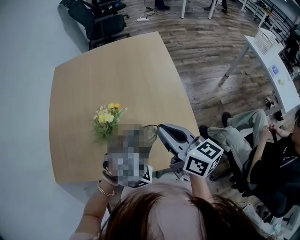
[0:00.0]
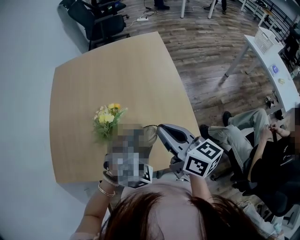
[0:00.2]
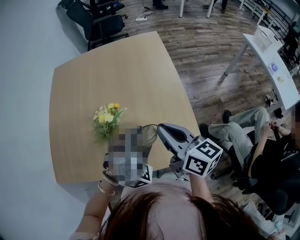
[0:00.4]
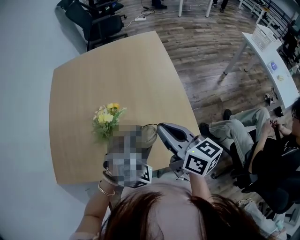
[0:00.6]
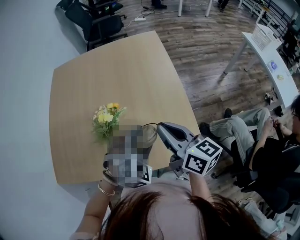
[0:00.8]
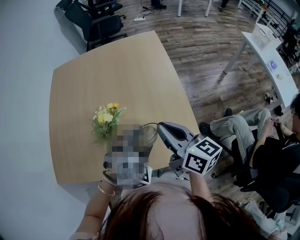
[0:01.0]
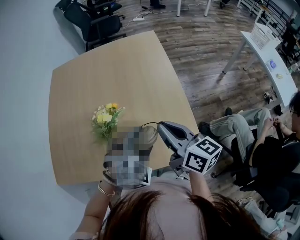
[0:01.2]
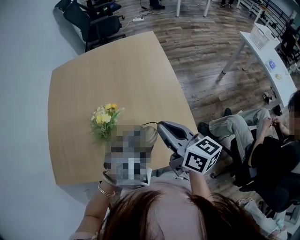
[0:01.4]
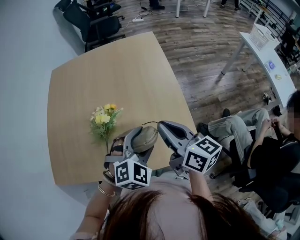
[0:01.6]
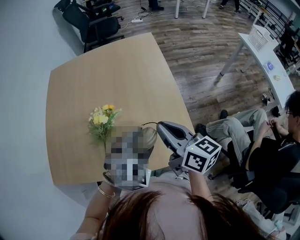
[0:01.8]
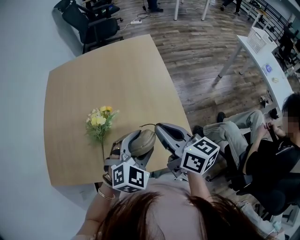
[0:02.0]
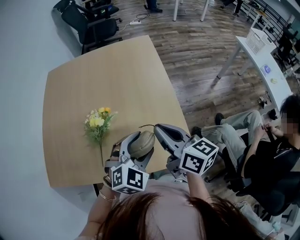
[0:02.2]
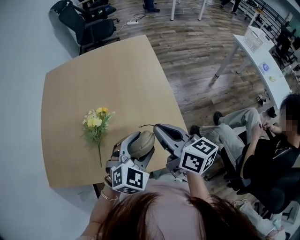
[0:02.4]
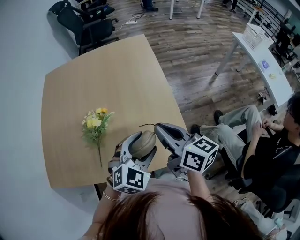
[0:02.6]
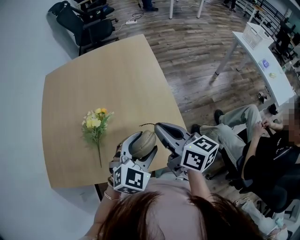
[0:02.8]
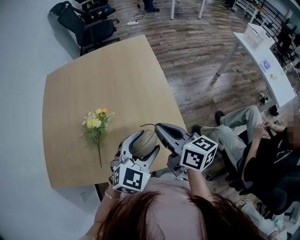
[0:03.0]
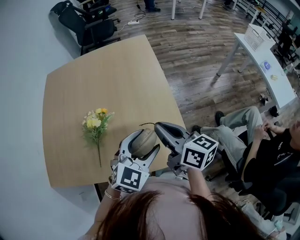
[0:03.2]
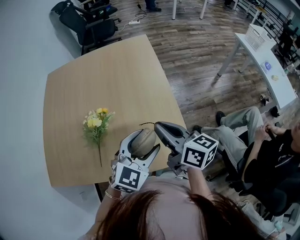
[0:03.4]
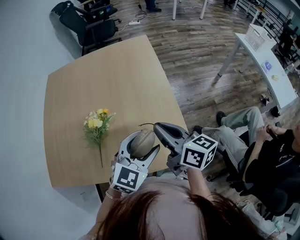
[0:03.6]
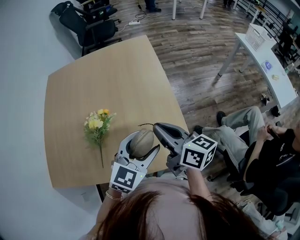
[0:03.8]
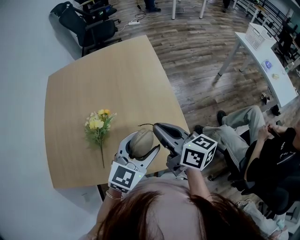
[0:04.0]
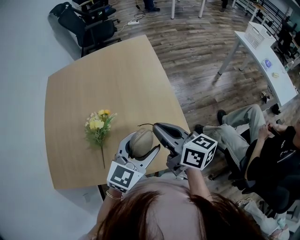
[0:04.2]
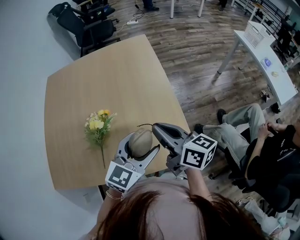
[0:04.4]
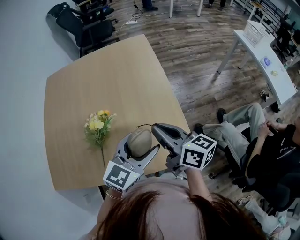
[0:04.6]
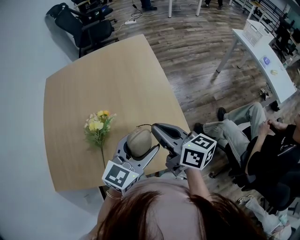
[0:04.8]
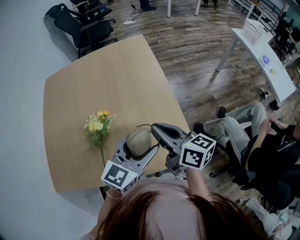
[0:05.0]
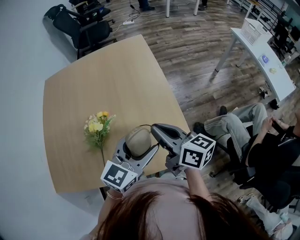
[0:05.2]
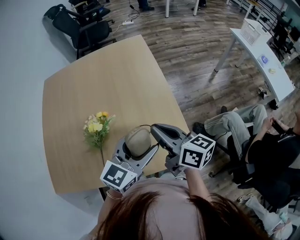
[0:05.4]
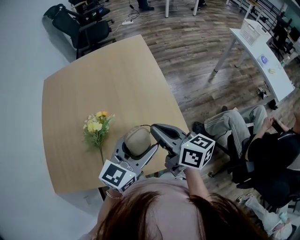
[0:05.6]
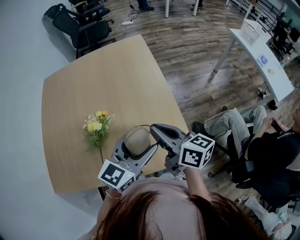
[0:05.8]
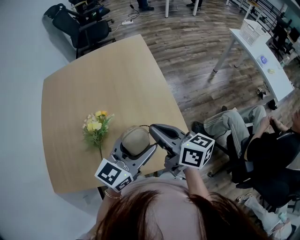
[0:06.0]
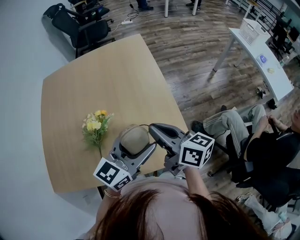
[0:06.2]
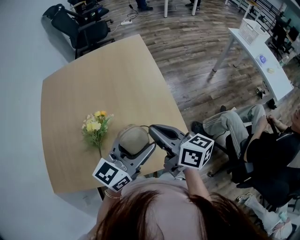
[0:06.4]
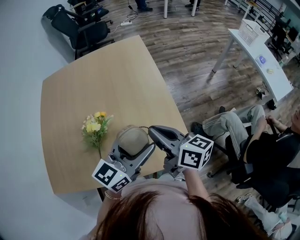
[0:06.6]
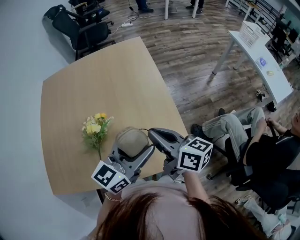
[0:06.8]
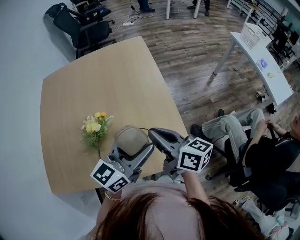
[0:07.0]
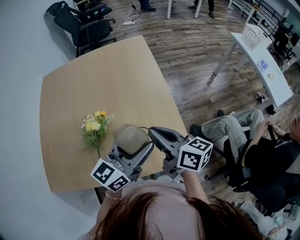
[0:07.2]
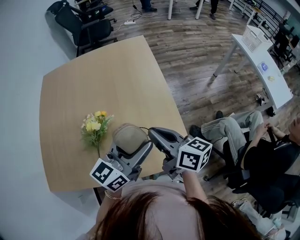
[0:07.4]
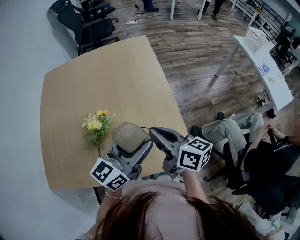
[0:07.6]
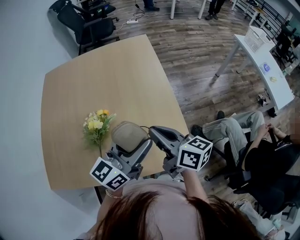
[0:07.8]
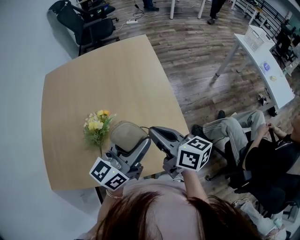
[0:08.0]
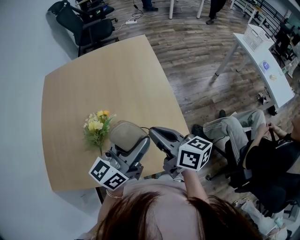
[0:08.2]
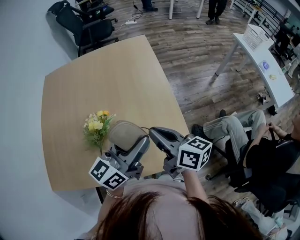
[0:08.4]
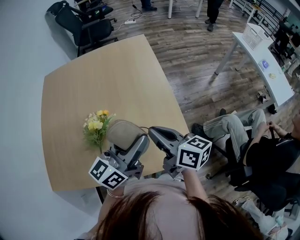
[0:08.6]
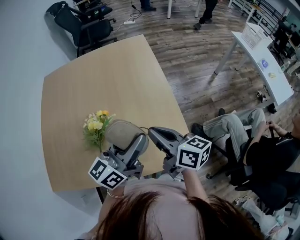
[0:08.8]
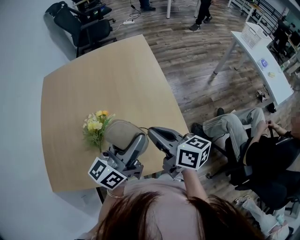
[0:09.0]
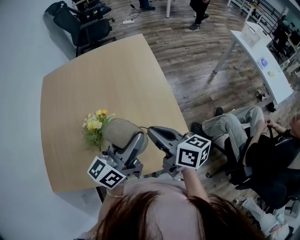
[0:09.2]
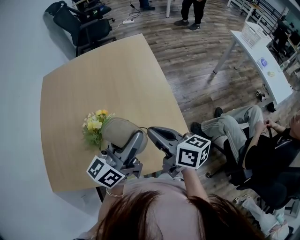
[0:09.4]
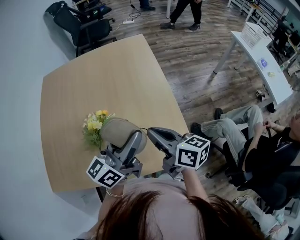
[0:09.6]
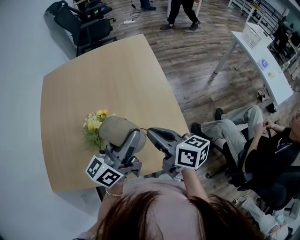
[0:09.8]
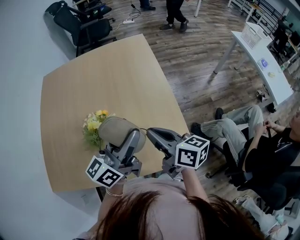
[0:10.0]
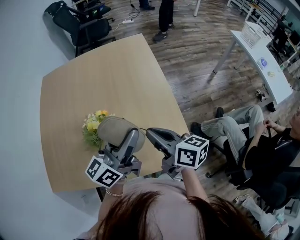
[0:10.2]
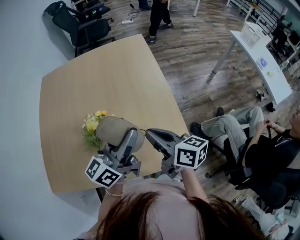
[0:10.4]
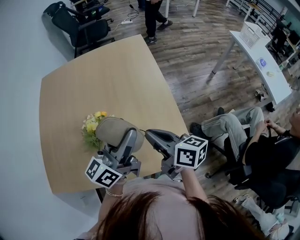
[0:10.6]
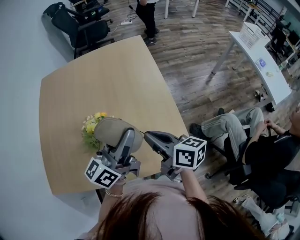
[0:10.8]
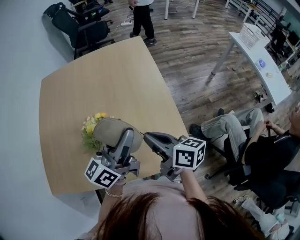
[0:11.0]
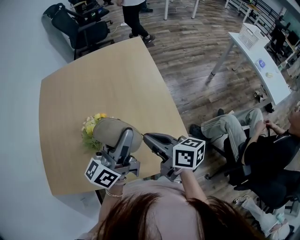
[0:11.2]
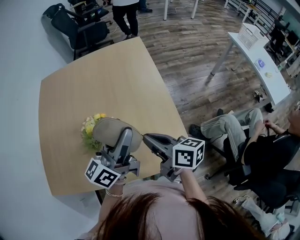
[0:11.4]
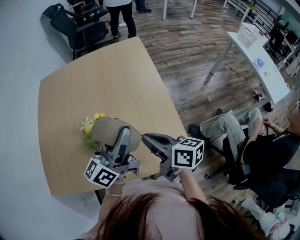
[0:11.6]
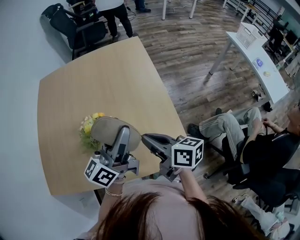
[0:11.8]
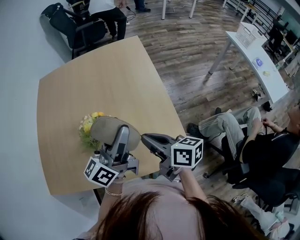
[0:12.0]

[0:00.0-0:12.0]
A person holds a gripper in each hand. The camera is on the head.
0:00.0 to 0:01.6: There are only small adjustments of the grippers.
0:01.6 to 0:03.0: The left gripper travels to the right by about 5 cm, and swivels roughly 20 degrees.
0:03.0 to 0:04.4: The left gripper turns by about 20 degrees.
0:04.4 to 0:06.0: The grippers move only a little.
0:06.0 to 0:07.6: The grippers move only a little.
0:07.6 to 0:10.4: The grippers move only a little.
0:10.4 to 0:12.0: The grippers make only small movements.

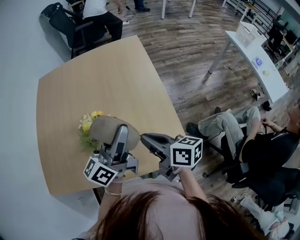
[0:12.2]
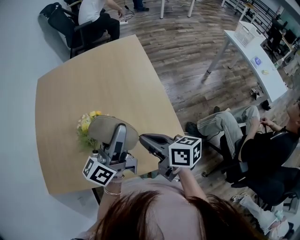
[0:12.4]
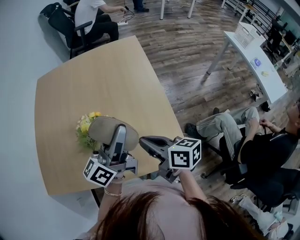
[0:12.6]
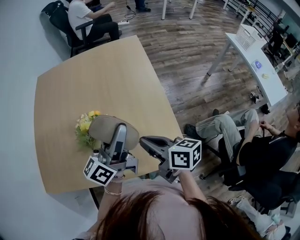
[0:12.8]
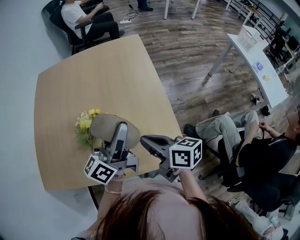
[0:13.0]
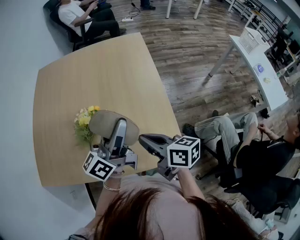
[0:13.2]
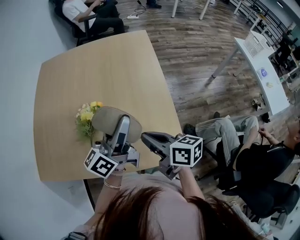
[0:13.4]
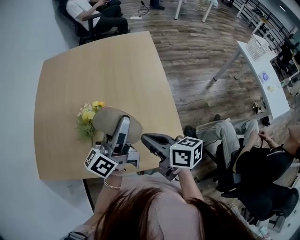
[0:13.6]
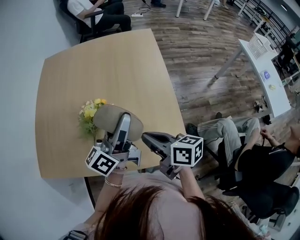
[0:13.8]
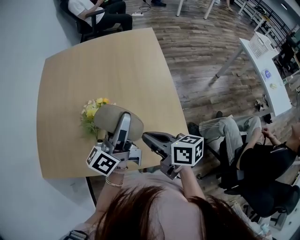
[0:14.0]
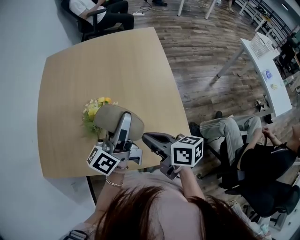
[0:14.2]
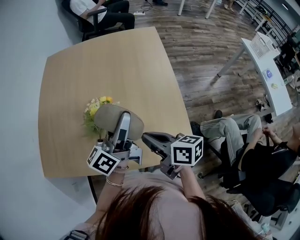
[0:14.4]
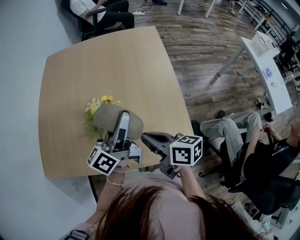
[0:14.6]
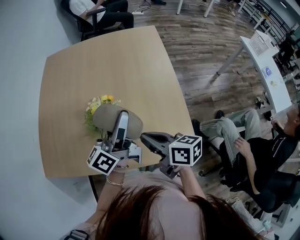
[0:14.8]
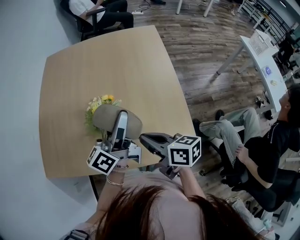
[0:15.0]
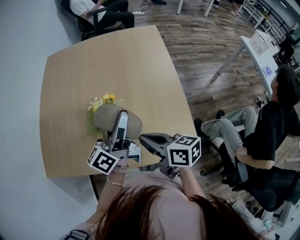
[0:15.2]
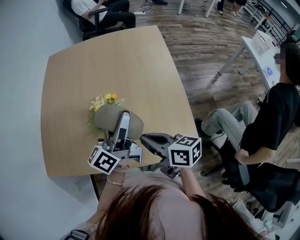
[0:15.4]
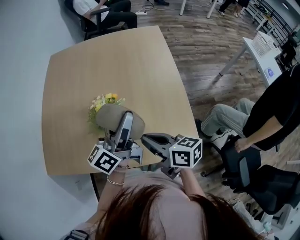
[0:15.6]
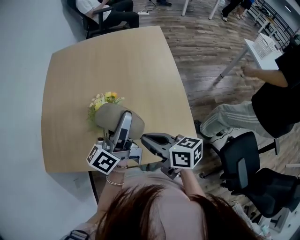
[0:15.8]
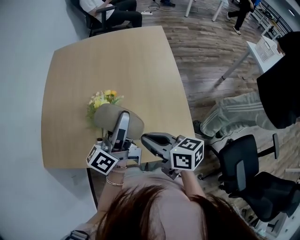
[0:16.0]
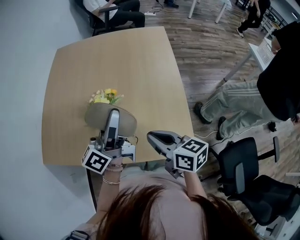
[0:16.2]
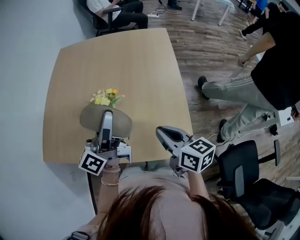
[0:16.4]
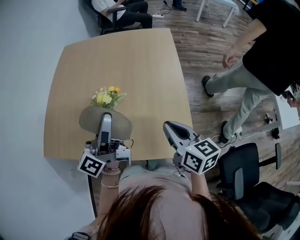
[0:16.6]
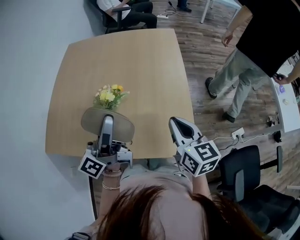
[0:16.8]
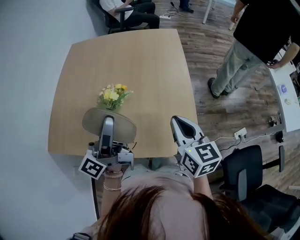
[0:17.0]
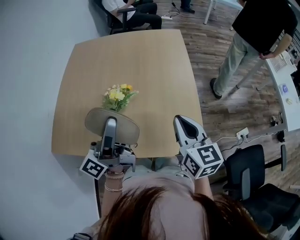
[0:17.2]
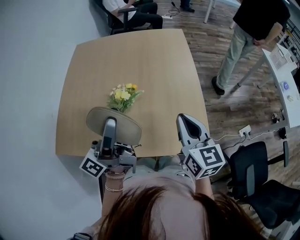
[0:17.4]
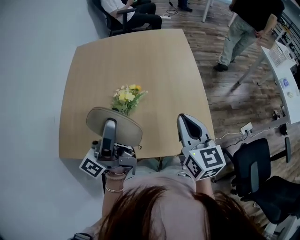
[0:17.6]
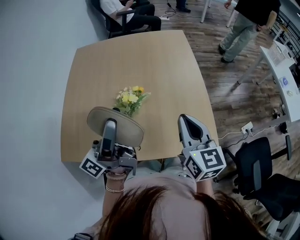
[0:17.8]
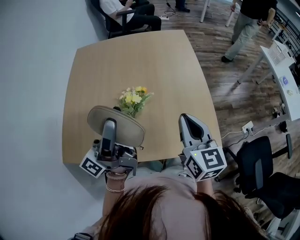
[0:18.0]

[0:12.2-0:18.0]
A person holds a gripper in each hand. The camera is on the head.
0:12.2 to 0:13.6: The grippers move only a little.
0:13.6 to 0:15.0: Both grippers travel together to the left, roughly 5 cm.
0:15.0 to 0:16.6: The left gripper moves backward, about 5 cm. The right gripper travels to the right by about 10 cm, and rotates about 20 degrees.
0:16.6 to 0:18.0: The grippers both shift to the left by approximately 10 cm. The right gripper changes its angle by about 20 degrees, while the left gripper changes its angle by roughly 20 degrees.

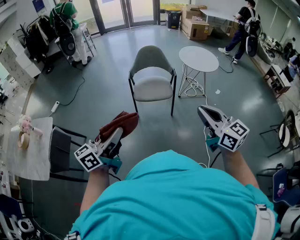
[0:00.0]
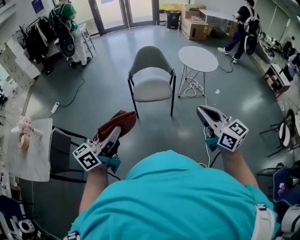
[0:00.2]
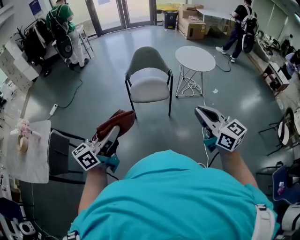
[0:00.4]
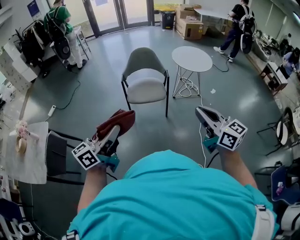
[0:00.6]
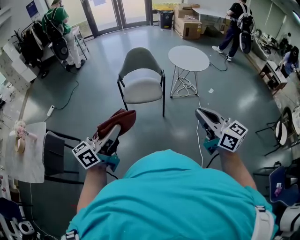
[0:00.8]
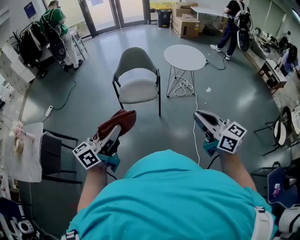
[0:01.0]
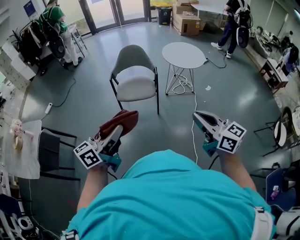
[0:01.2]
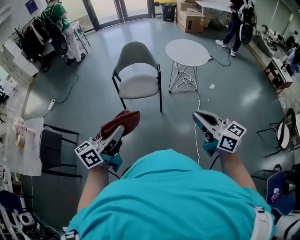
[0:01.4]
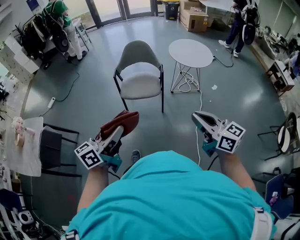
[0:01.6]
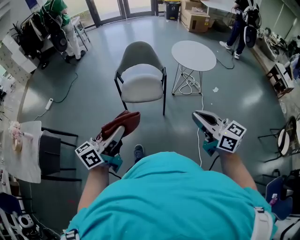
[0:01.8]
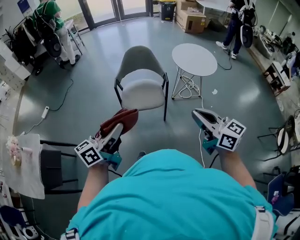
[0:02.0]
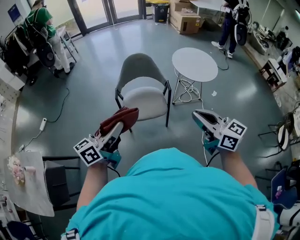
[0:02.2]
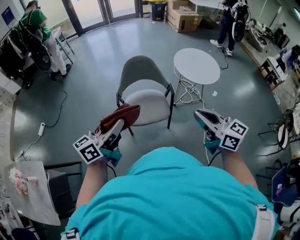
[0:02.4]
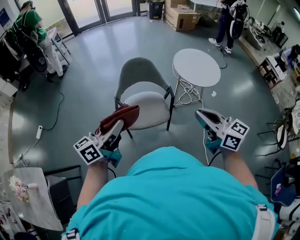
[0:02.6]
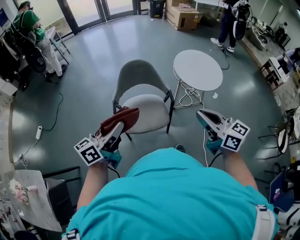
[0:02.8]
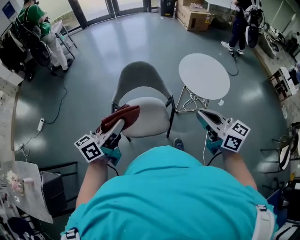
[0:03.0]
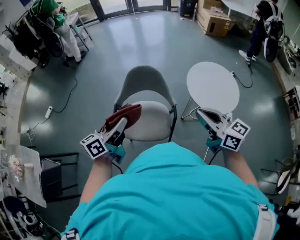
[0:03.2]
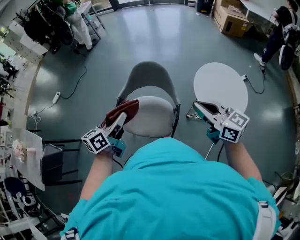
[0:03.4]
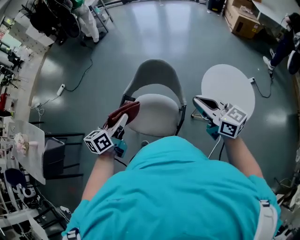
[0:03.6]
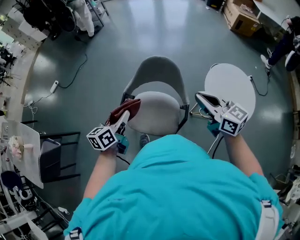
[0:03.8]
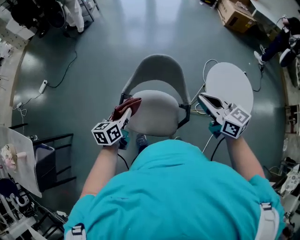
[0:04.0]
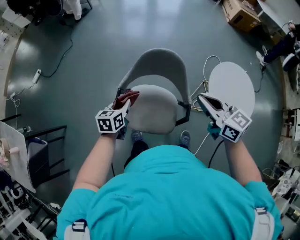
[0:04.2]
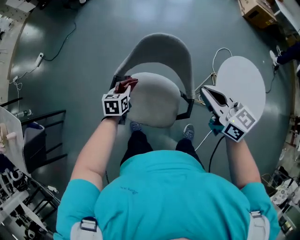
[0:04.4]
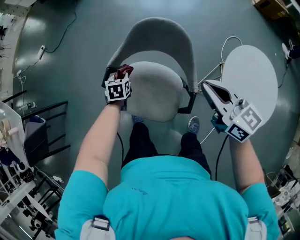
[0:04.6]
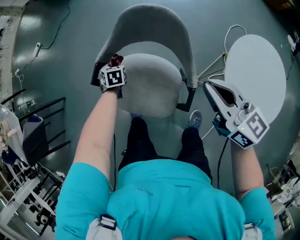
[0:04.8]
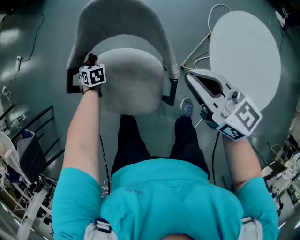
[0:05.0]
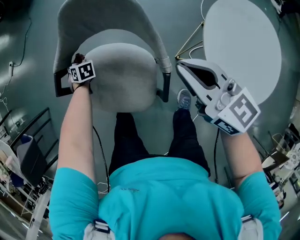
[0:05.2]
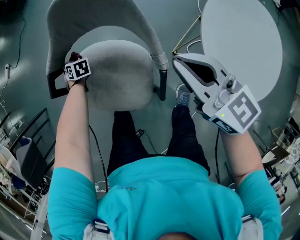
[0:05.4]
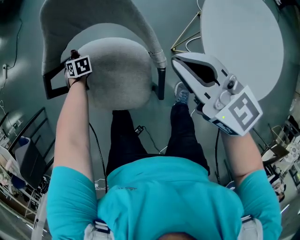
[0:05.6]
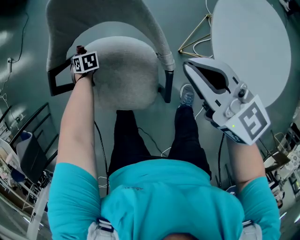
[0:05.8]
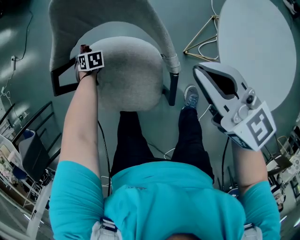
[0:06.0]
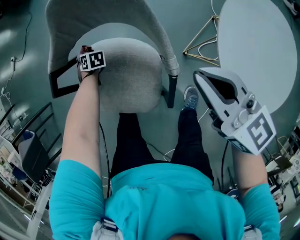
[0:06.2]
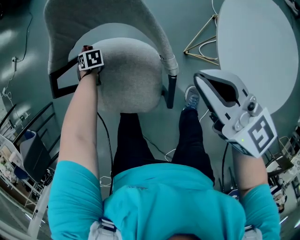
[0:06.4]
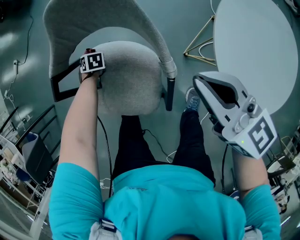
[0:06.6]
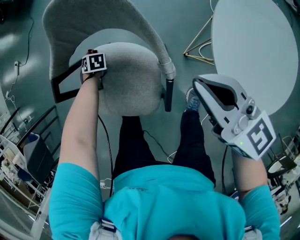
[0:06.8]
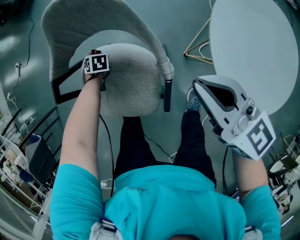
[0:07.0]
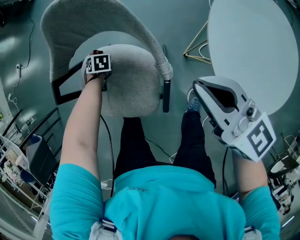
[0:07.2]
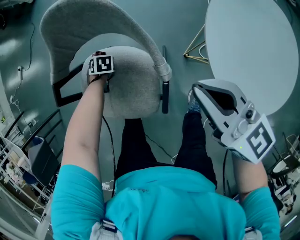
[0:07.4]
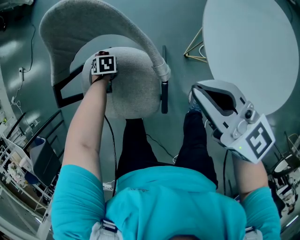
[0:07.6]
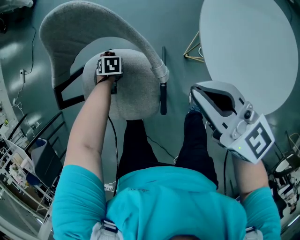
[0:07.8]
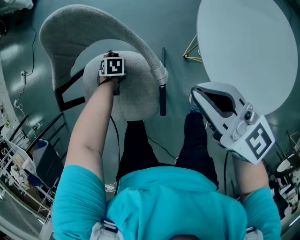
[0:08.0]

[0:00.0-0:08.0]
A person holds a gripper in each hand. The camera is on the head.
0:00.0 to 0:01.6: Both grippers move to the right, approximately 15 cm.
0:01.6 to 0:03.2: The pair of grippers is taken forward, about 50 cm.
0:03.2 to 0:04.8: The left gripper is displaced downward by approximately 50 cm, and angles its fingers downward, by some 60 degrees, while the right gripper heads downward, covering about 25 cm.
0:04.8 to 0:06.4: The left gripper moves downward, some 15 cm. The right gripper is displaced downward by approximately 10 cm.
0:06.4 to 0:08.0: The left gripper shifts by some 15 cm. Meanwhile the right gripper shifts by approximately 5 cm.
